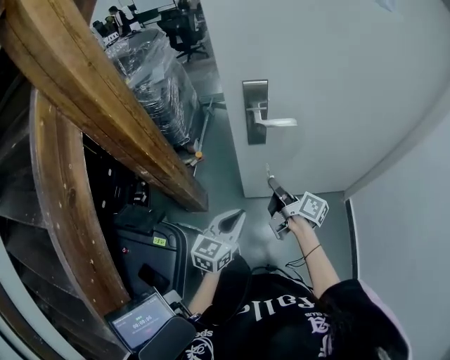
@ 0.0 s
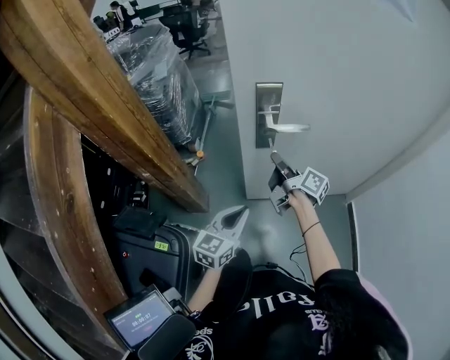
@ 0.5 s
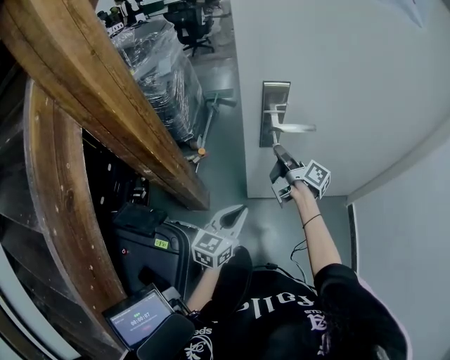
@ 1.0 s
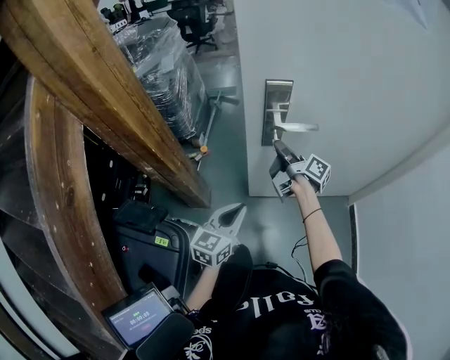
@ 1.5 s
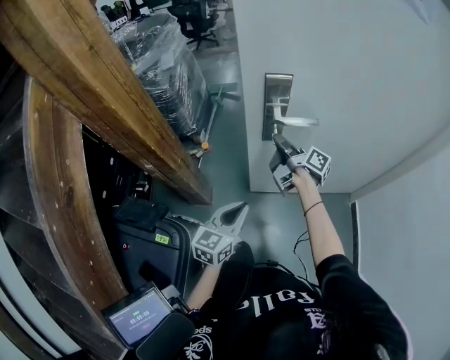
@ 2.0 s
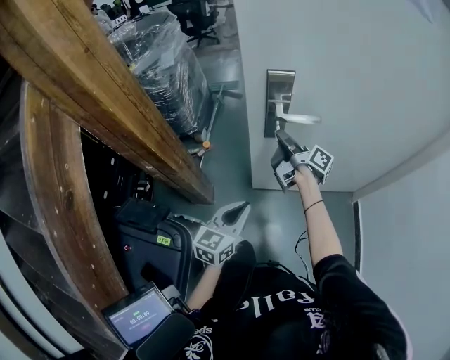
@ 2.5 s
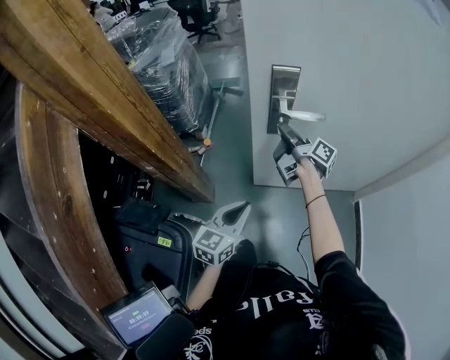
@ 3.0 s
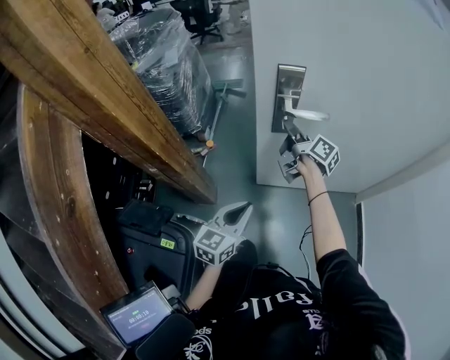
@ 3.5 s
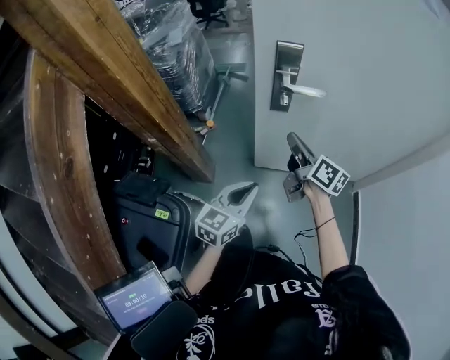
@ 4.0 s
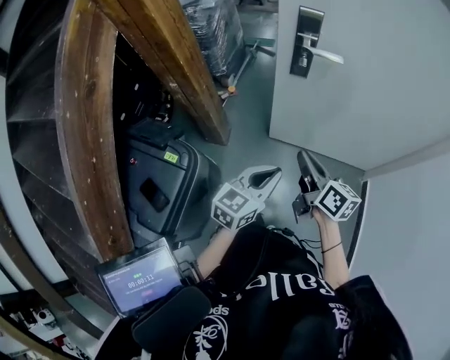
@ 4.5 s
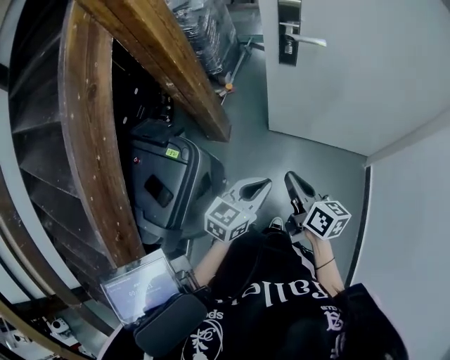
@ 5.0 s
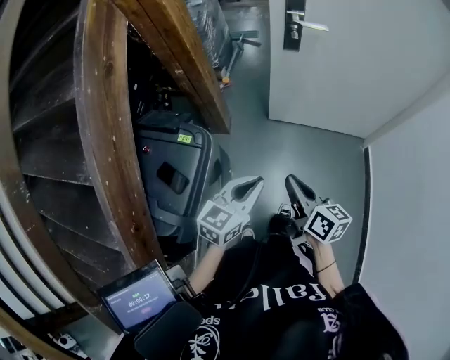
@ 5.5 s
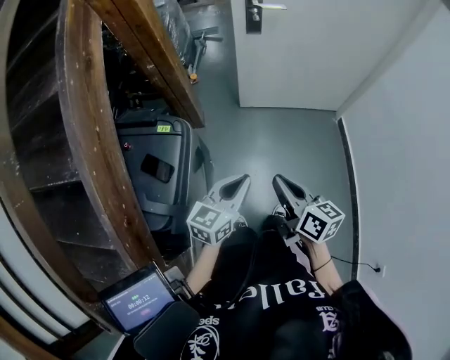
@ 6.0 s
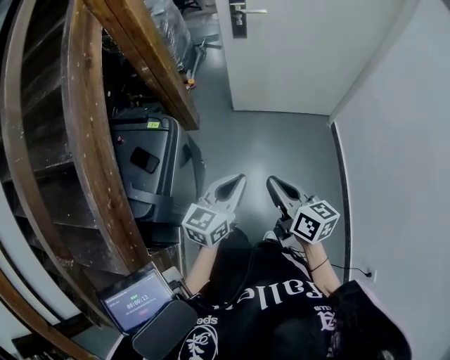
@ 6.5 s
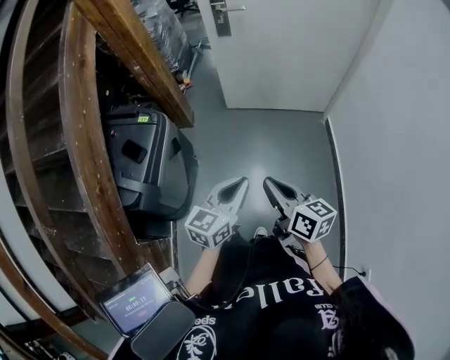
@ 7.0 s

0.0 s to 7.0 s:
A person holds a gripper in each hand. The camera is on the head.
0.0 to 2.0 s: The left gripper shifts by some 5 cm; the right gripper shifts about 15 cm forward.
2.0 to 3.5 s: The right gripper moves forward, some 5 cm.
3.5 to 5.0 s: The right gripper moves backward, roughly 50 cm, and rotates some 30 degrees, while the left gripper moves backward and to the right, about 25 cm.
5.0 to 7.0 s: Both grippers travel together backward, some 35 cm.

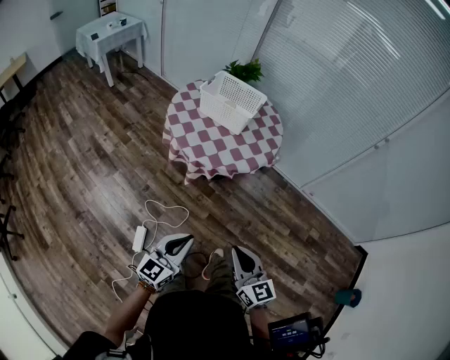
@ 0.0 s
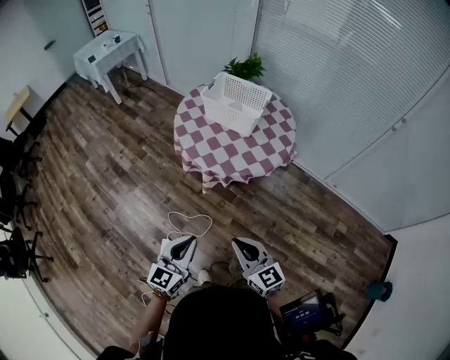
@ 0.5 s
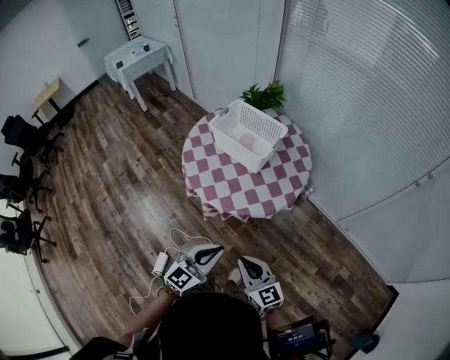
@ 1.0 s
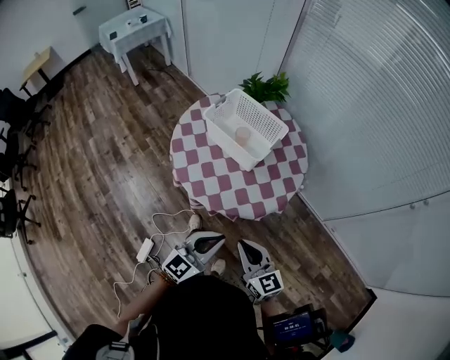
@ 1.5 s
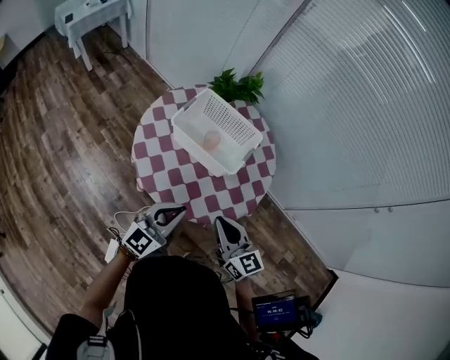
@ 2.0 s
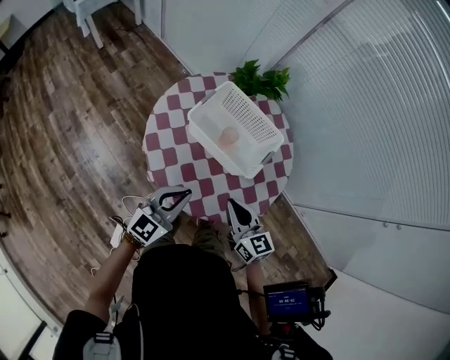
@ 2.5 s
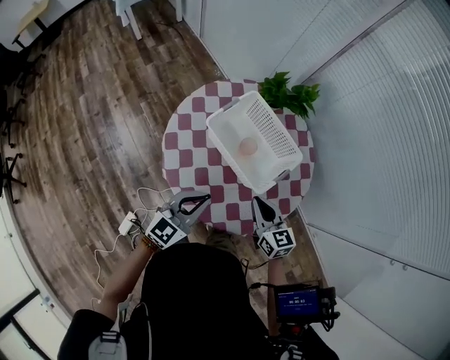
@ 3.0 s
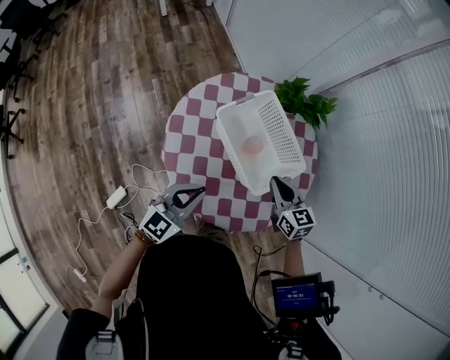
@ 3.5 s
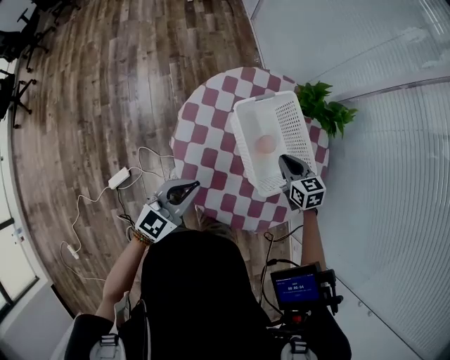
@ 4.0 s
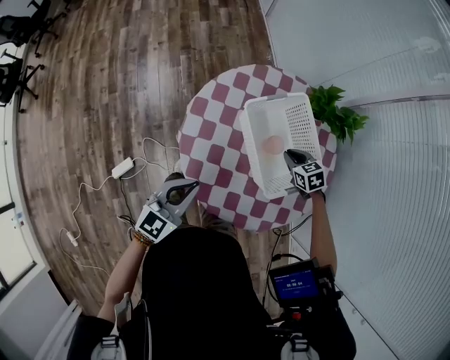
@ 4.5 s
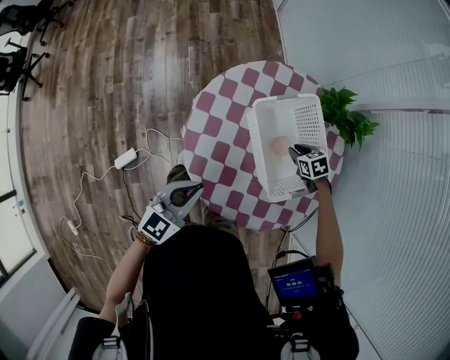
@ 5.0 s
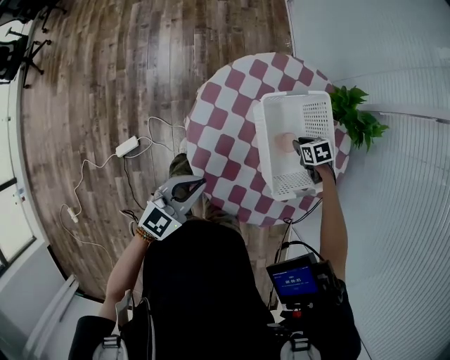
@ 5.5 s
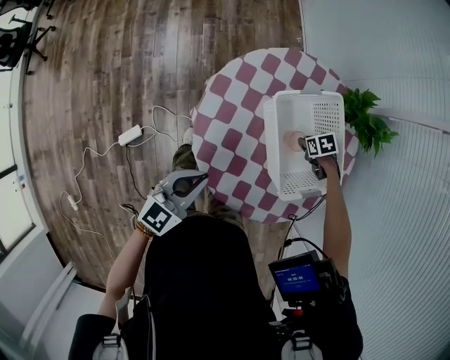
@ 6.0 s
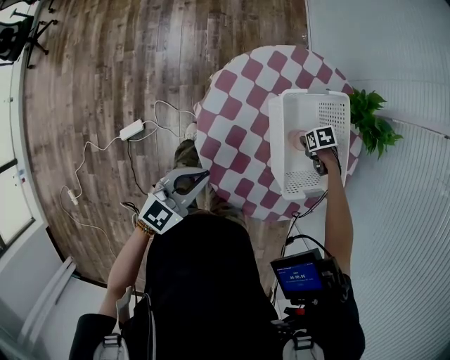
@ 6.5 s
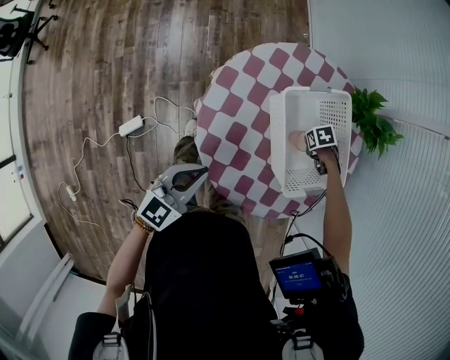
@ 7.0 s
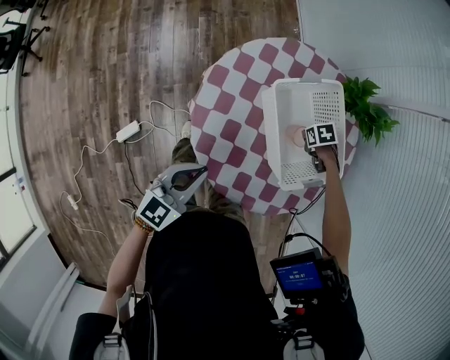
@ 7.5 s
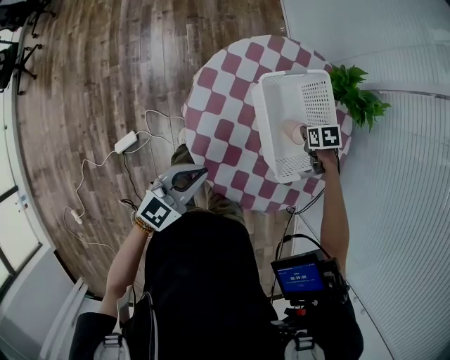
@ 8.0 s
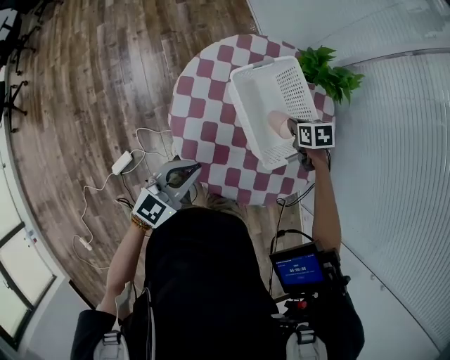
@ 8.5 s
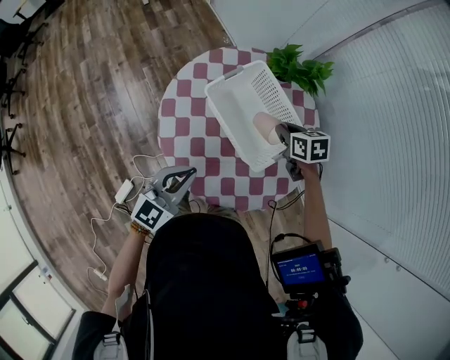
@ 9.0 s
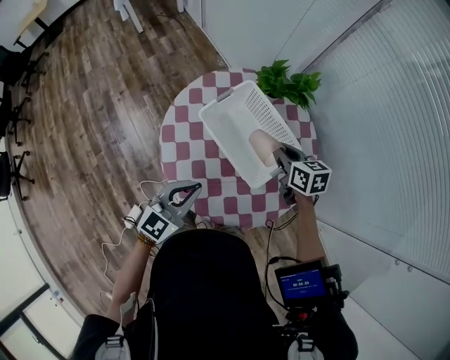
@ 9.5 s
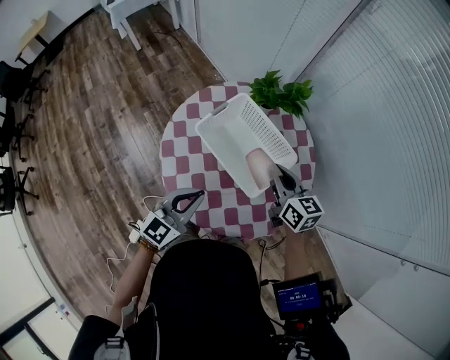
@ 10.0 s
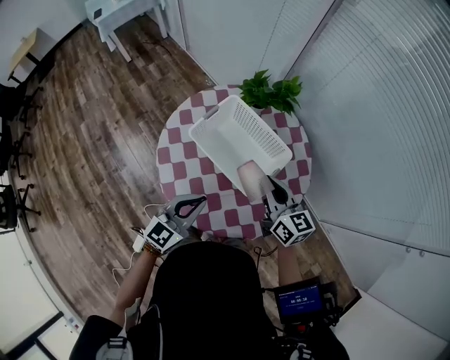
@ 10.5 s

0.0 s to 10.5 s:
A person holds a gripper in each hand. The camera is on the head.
0.0 to 2.0 s: The pair of grippers is taken forward, roughly 50 cm.
2.0 to 4.0 s: The right gripper changes place by approximately 35 cm, and tilts its fingers about 30 degrees downward, while the left gripper shifts by some 10 cm, and swivels about 40 degrees.
4.0 to 6.5 s: The left gripper shifts by about 5 cm. Meanwhile the right gripper travels downward by about 20 cm, and points its fingers some 40 degrees further downward.
6.5 to 8.5 s: The left gripper ends up roughly 5 cm from where it was. Meanwhile the right gripper goes approximately 15 cm upward, and swivels roughly 30 degrees.
8.5 to 10.5 s: The right gripper is displaced upward and backward by some 25 cm, and tips its fingers upward by approximately 50 degrees. The left gripper is displaced to the right by about 5 cm.

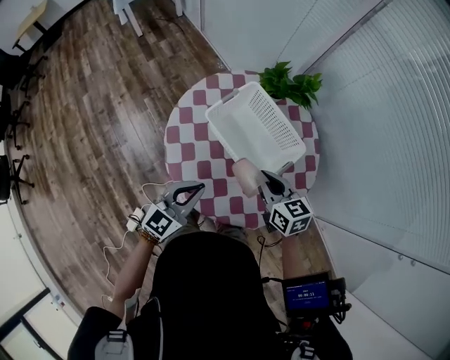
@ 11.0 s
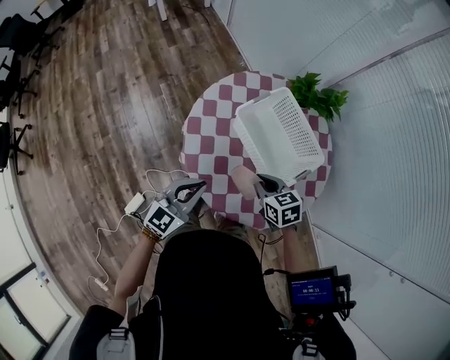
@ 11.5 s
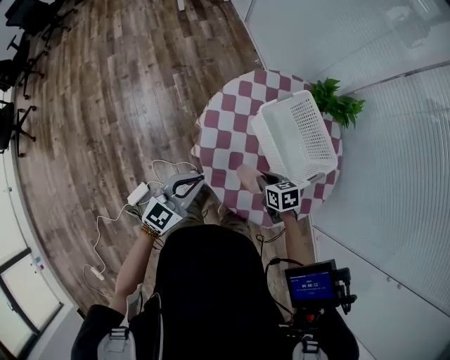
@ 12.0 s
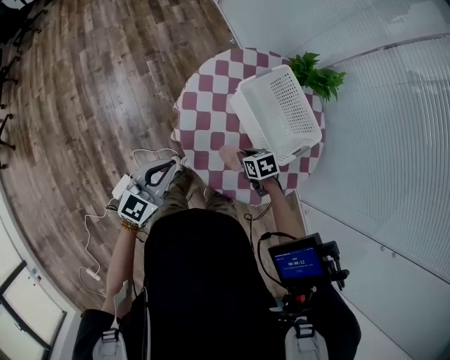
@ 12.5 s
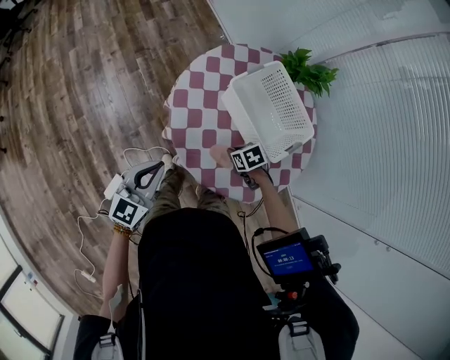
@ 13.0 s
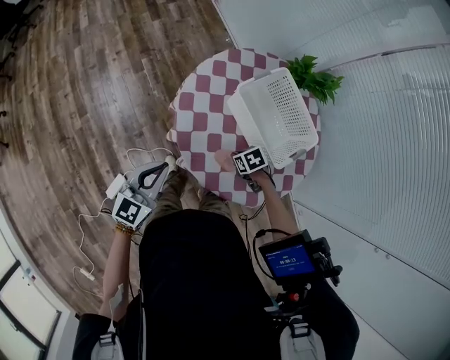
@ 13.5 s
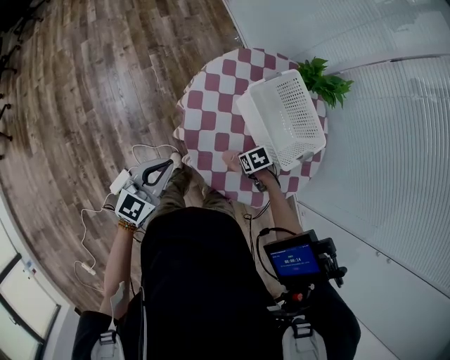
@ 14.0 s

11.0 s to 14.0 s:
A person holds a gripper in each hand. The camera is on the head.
11.0 to 12.5 s: The right gripper heads downward and to the left, covering about 20 cm, and tips its fingers downward by approximately 40 degrees; the left gripper is displaced to the left by some 20 cm.
12.5 to 14.0 s: The right gripper shifts roughly 5 cm downward.

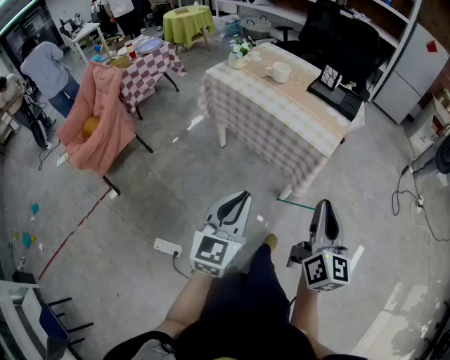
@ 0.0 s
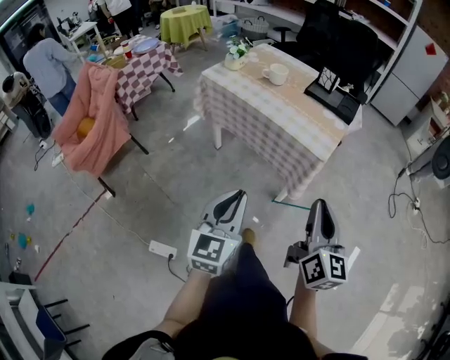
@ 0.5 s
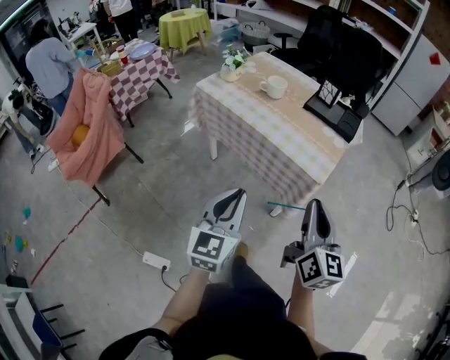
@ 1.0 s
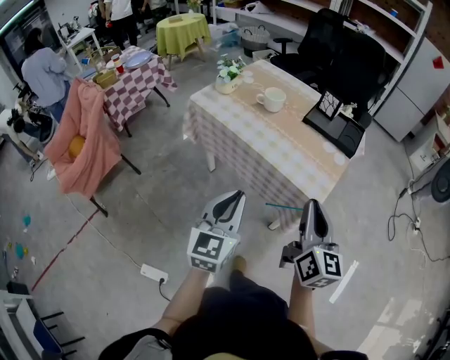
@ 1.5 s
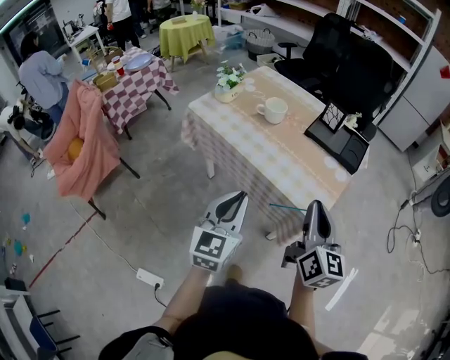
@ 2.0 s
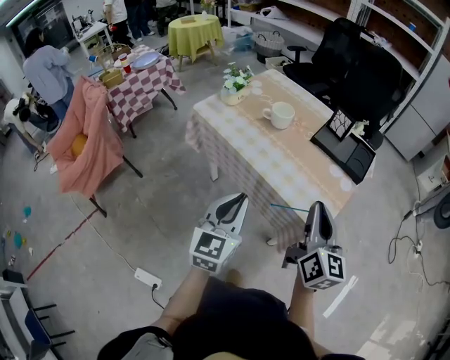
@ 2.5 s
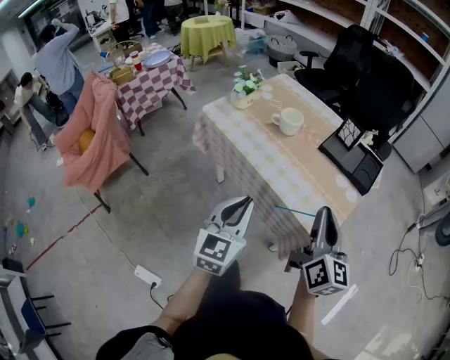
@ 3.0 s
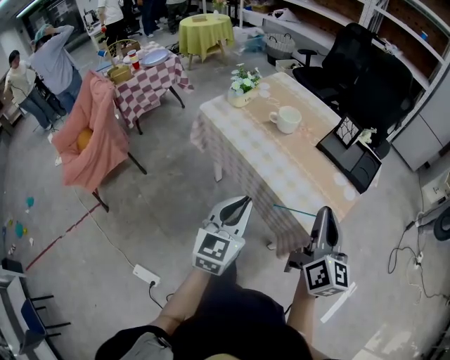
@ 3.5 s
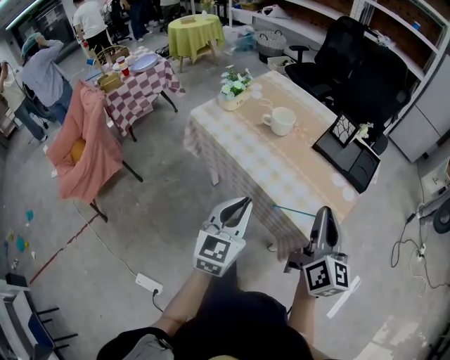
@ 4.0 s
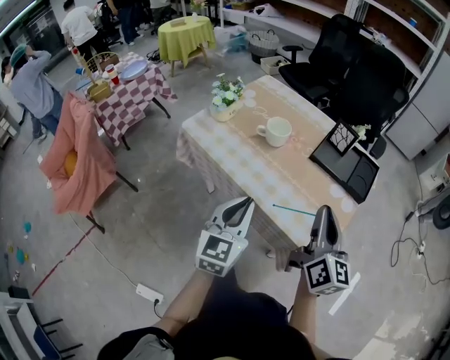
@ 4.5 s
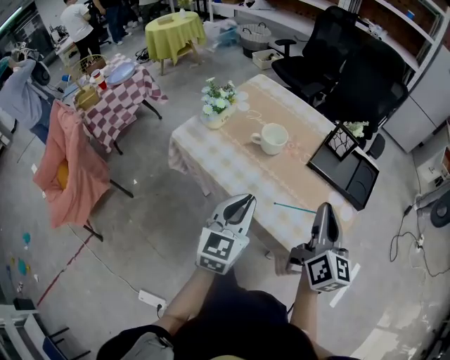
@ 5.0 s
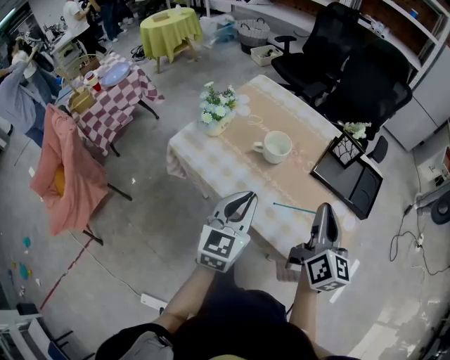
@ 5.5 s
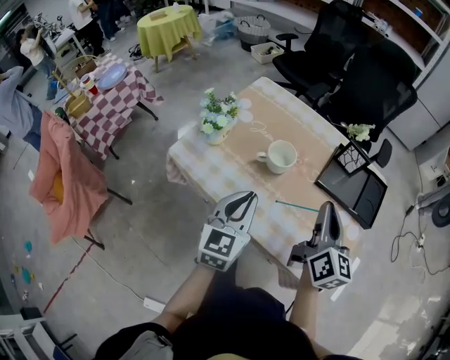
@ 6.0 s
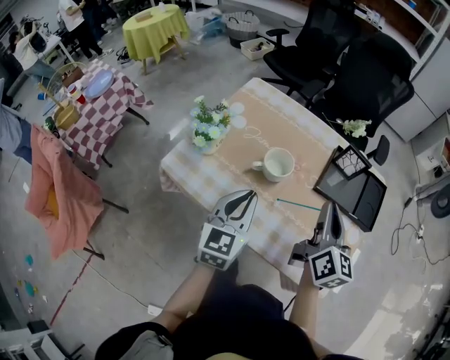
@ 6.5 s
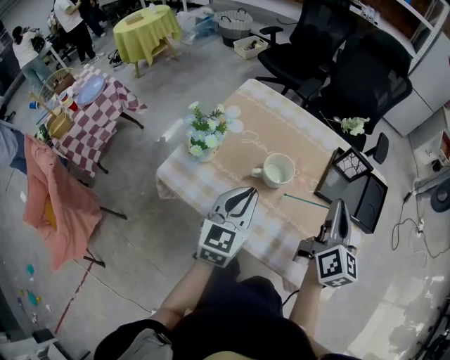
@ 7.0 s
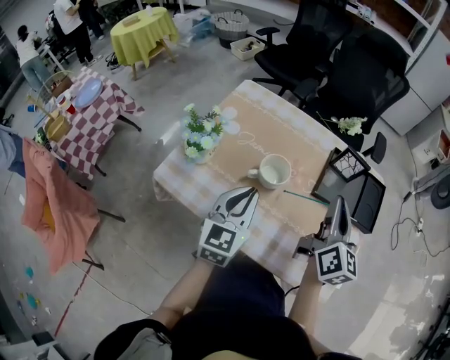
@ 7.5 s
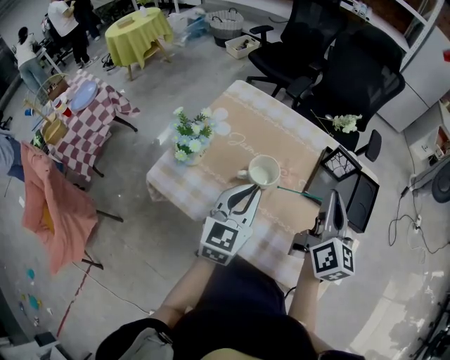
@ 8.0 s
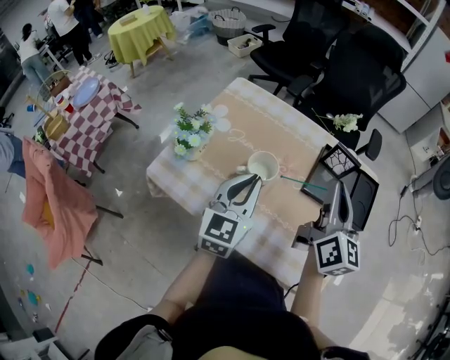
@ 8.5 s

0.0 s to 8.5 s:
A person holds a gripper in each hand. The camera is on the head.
0.0 to 2.0 s: Both grippers travel together forward, roughly 30 cm.
2.0 to 4.0 s: The grippers both shift forward by roughly 5 cm.
4.0 to 6.5 s: Both grippers move forward, about 25 cm.
6.5 to 8.5 s: The right gripper moves forward and upward, roughly 10 cm, while the left gripper goes roughly 5 cm forward.
